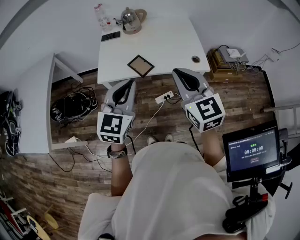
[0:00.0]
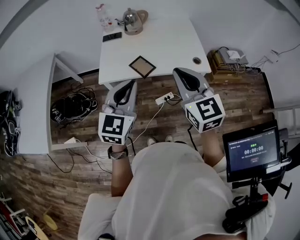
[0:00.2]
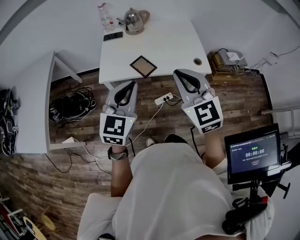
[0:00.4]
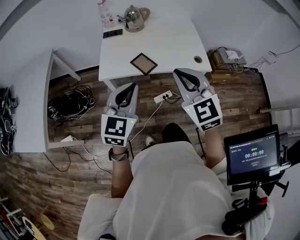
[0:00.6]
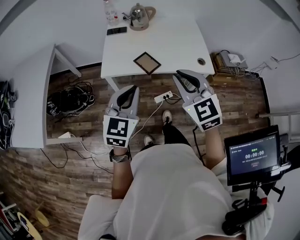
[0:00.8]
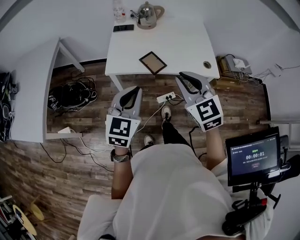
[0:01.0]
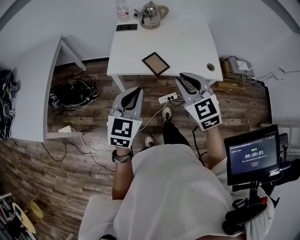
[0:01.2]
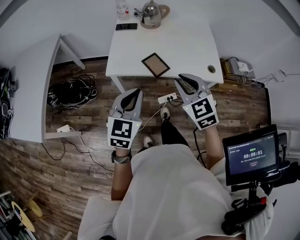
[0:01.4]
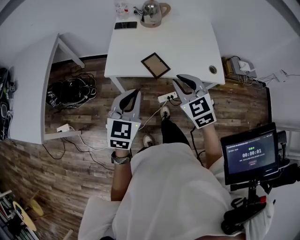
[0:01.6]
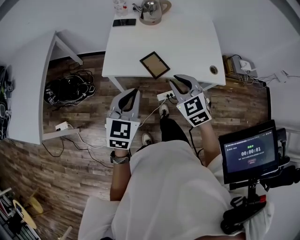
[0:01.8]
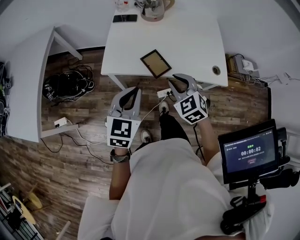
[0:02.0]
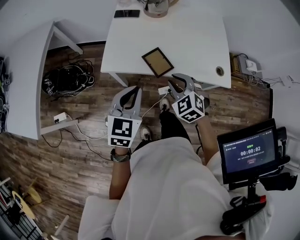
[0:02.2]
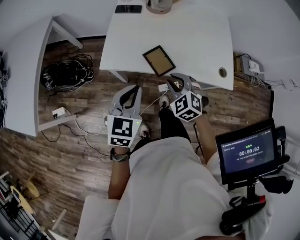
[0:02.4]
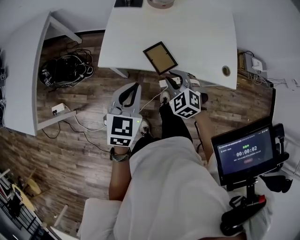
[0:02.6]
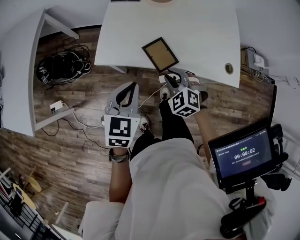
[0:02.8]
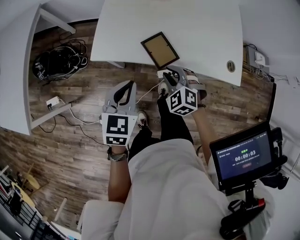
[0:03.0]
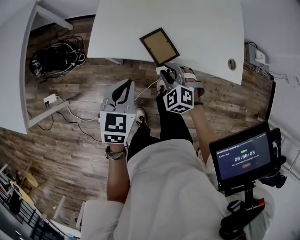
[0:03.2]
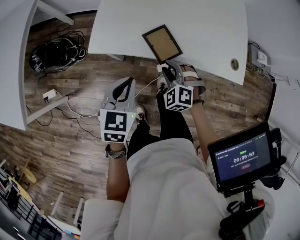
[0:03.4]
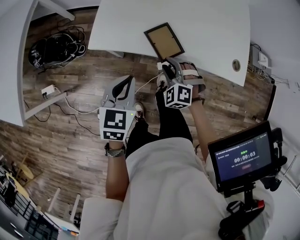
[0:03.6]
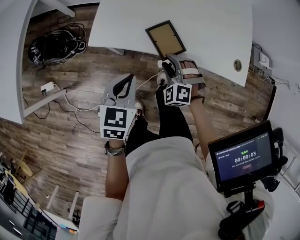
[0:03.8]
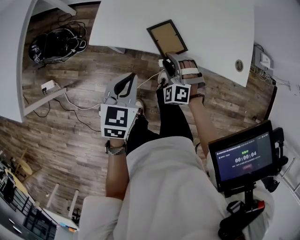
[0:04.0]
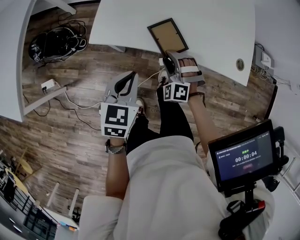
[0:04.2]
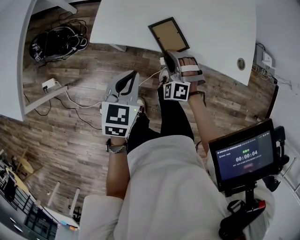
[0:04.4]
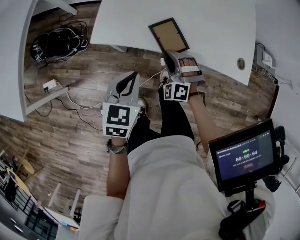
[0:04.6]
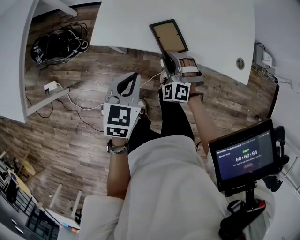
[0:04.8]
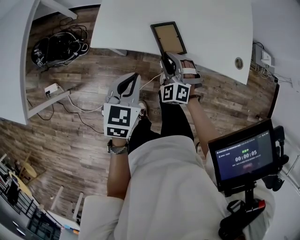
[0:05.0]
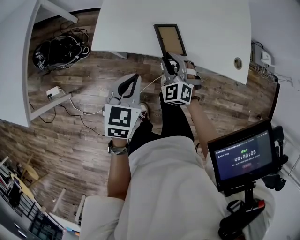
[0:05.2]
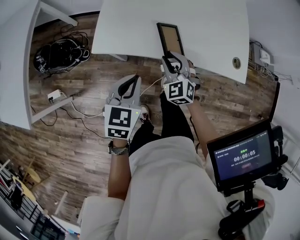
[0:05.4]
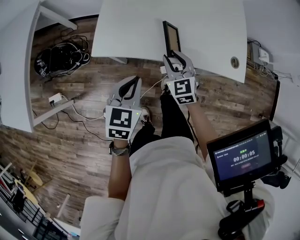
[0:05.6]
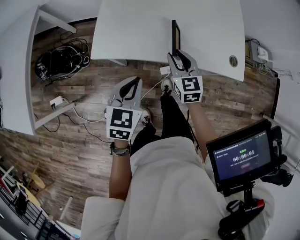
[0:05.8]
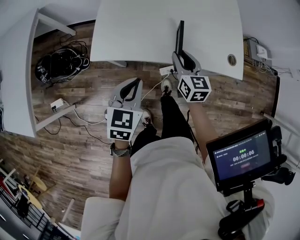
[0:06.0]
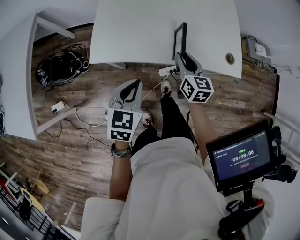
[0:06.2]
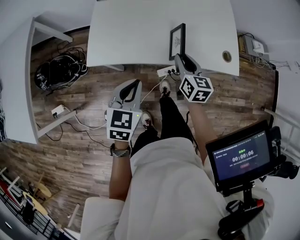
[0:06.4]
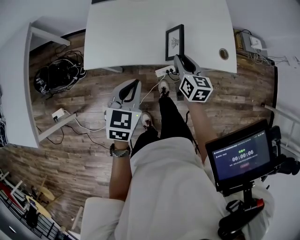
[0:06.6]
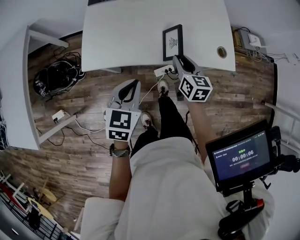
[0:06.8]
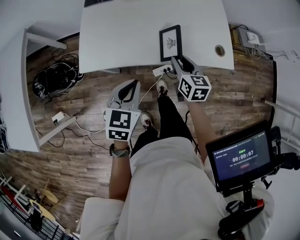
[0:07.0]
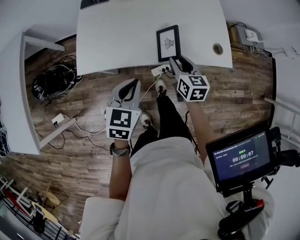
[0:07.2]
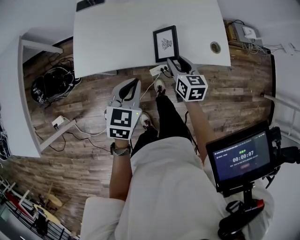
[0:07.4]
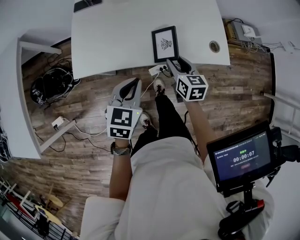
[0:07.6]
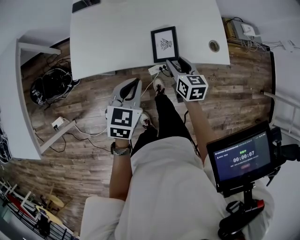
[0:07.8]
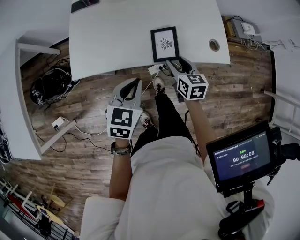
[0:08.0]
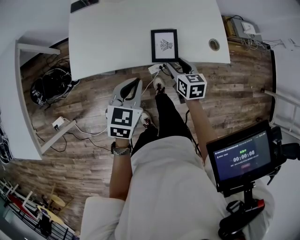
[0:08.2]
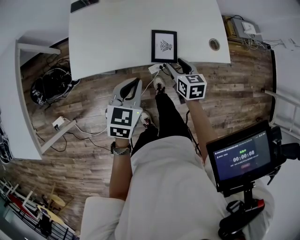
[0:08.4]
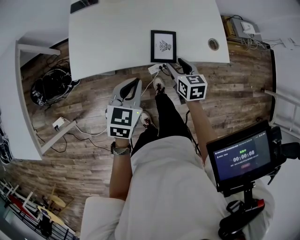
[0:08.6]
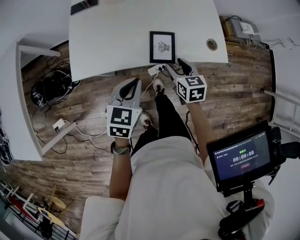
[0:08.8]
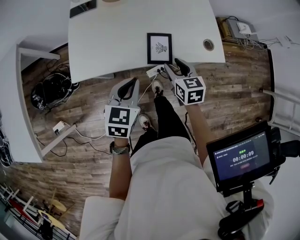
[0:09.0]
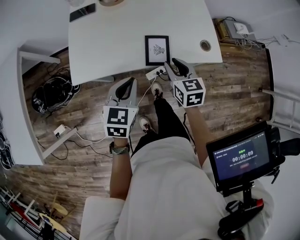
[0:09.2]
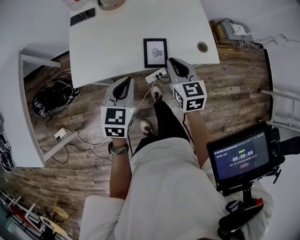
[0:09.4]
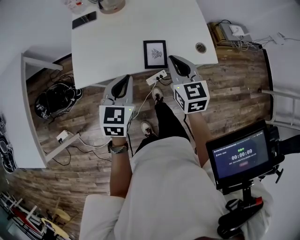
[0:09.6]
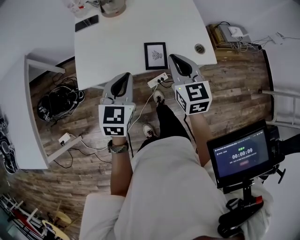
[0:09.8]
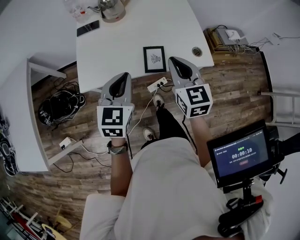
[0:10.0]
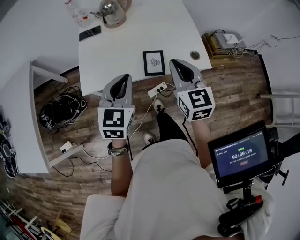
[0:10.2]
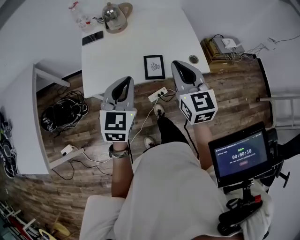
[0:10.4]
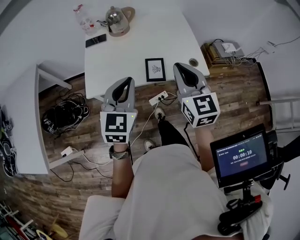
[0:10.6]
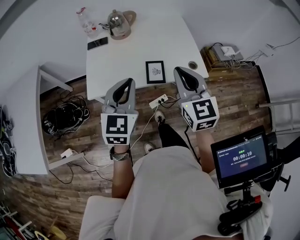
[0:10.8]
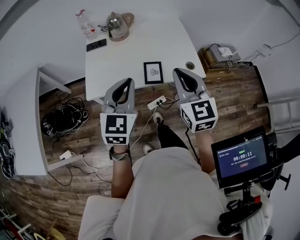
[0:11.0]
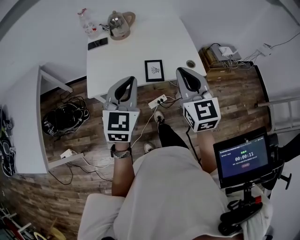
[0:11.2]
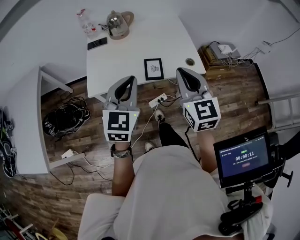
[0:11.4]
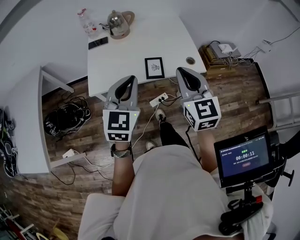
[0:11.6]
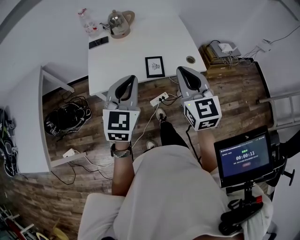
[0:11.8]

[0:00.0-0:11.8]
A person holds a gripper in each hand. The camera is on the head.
0.0 to 1.4 s: The right gripper goes some 15 cm downward, to the left and forward, and rotates approximately 20 degrees. The left gripper moves downward and to the left, some 10 cm.
1.4 to 3.0 s: The right gripper moves downward, about 25 cm, and rotates about 30 degrees. The left gripper goes roughly 20 cm downward and forward.
3.0 to 4.4 s: The right gripper changes its angle by approximately 30 degrees.
4.4 to 6.0 s: The right gripper heads upward, forward and to the right, covering roughly 10 cm, and rotates around the line of its fingers by some 80 degrees, clockwise from behind.
6.0 to 7.4 s: Both grippers travel together to the right, about 10 cm.
7.4 to 8.8 s: The grippers move only a little.
8.8 to 10.4 s: The left gripper heads upward, covering roughly 20 cm, and changes its angle by roughly 20 degrees. The right gripper goes approximately 30 cm upward, swivels about 30 degrees, and closes.
10.4 to 11.8 s: The grippers make only small movements.

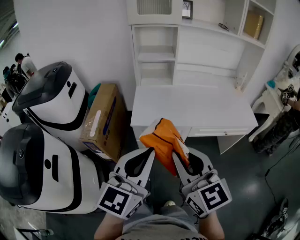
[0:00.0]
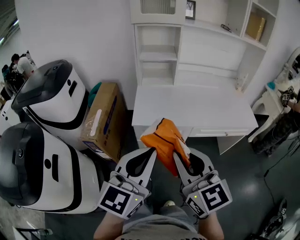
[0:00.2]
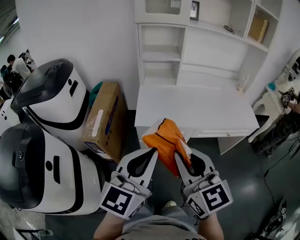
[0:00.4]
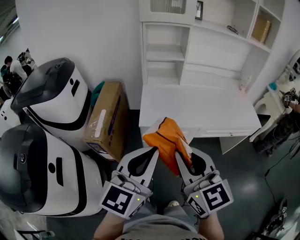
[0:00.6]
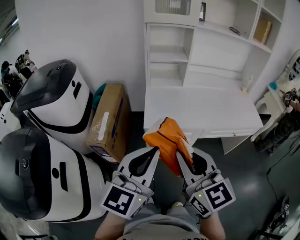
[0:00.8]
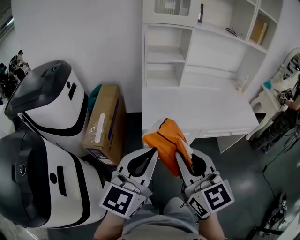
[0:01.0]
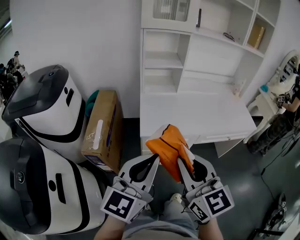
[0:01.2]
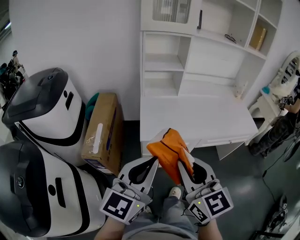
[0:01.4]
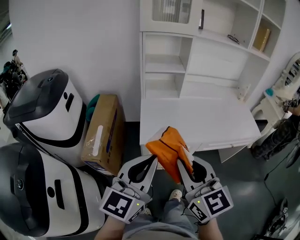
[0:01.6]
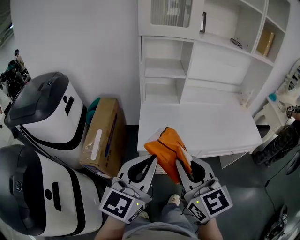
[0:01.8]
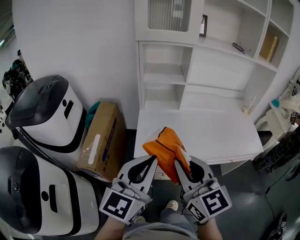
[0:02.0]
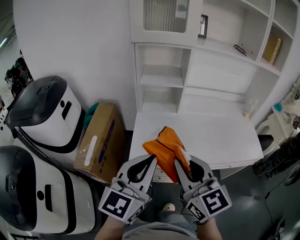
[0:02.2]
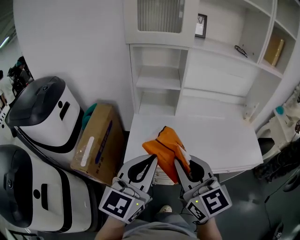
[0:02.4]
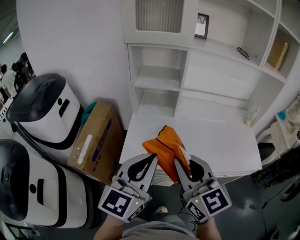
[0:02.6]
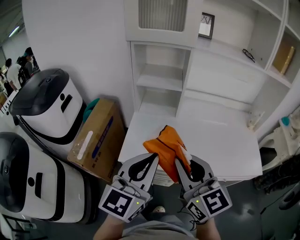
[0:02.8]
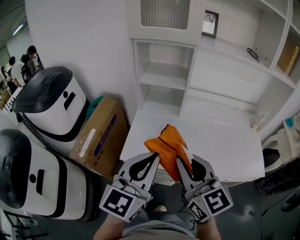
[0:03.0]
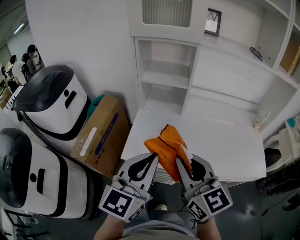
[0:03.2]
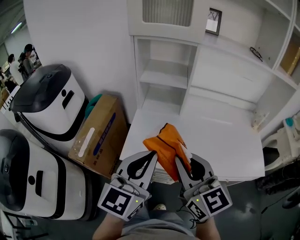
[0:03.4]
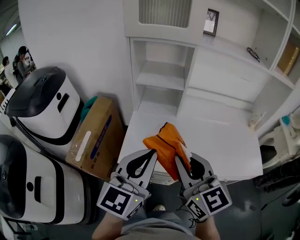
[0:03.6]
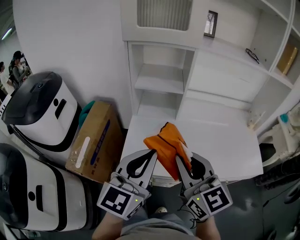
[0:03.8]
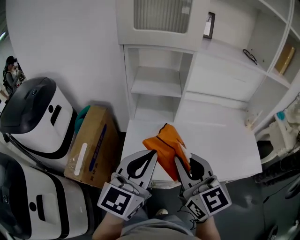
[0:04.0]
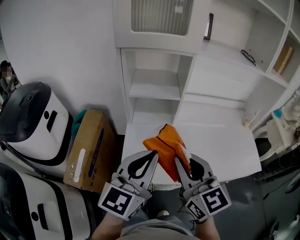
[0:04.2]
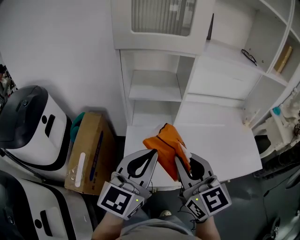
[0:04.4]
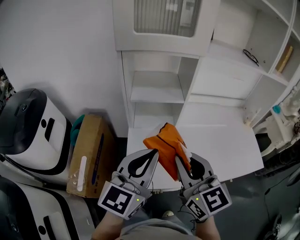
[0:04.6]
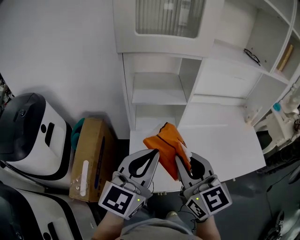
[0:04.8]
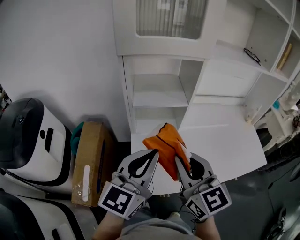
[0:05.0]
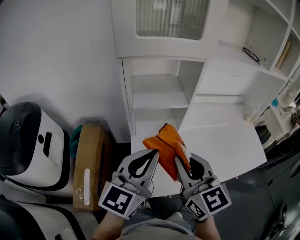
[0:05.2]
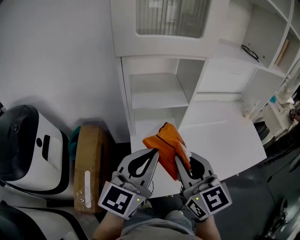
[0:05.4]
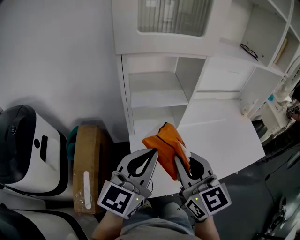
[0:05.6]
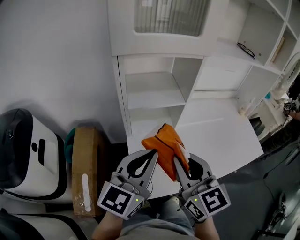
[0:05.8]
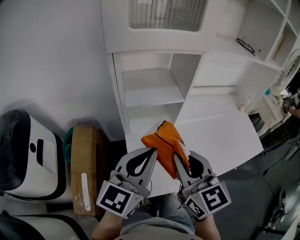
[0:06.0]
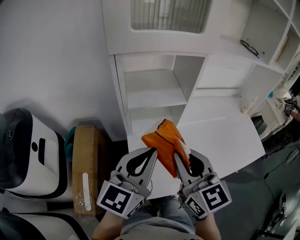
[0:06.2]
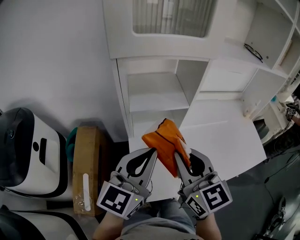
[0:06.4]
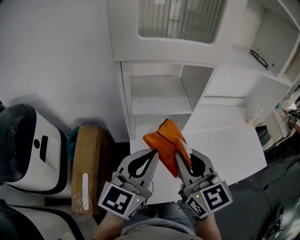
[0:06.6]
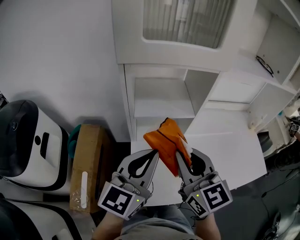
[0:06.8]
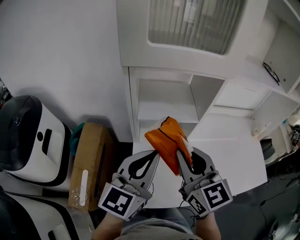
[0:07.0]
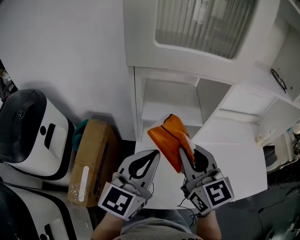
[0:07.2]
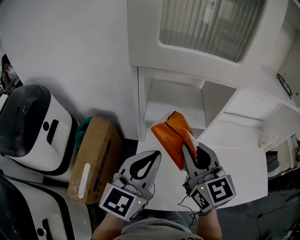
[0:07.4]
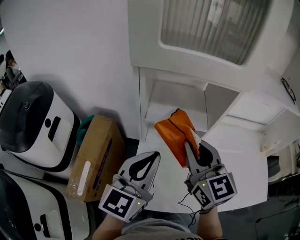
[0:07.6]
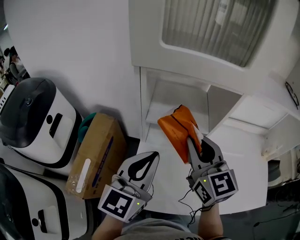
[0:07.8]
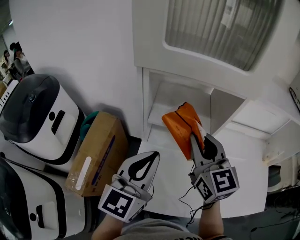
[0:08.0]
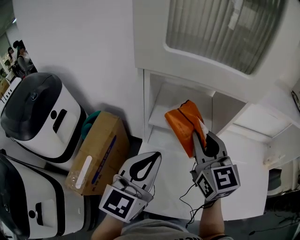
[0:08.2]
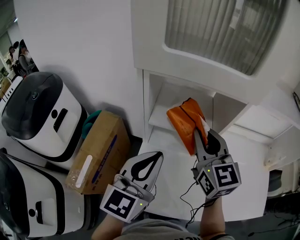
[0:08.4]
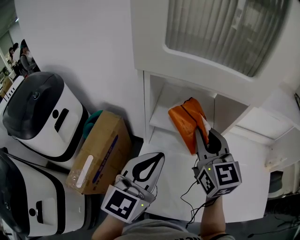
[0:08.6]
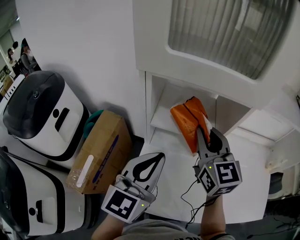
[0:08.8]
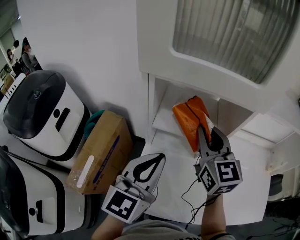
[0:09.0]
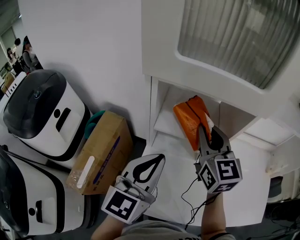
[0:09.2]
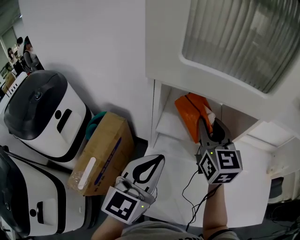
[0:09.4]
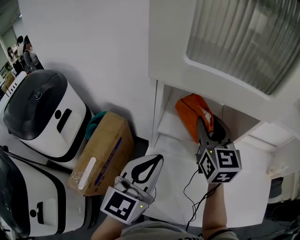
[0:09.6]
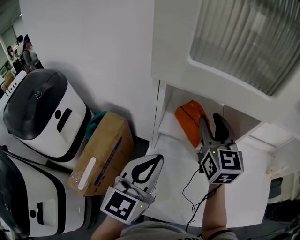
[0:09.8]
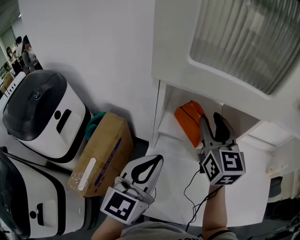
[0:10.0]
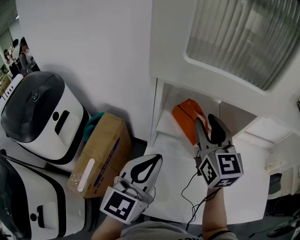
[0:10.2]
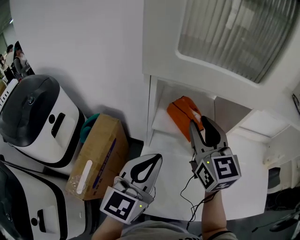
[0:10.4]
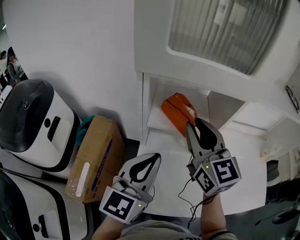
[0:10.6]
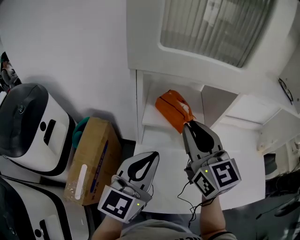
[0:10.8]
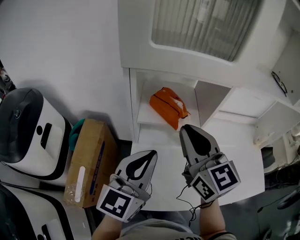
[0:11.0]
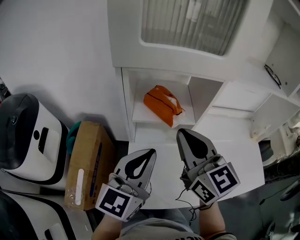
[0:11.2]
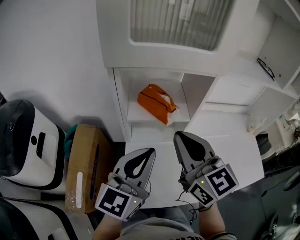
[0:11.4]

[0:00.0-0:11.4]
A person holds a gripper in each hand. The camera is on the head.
0.0 to 1.4 s: The right gripper goes about 10 cm to the left. The left gripper shifts approximately 10 cm to the left and forward.
1.4 to 2.8 s: The grippers both shift forward and to the right by roughly 25 cm.
2.8 to 4.2 s: Both grippers move forward, approximately 10 cm.
4.2 to 5.6 s: The grippers both shift to the left and forward by roughly 10 cm.
5.6 to 7.2 s: The left gripper heads forward, covering about 5 cm, while the right gripper shifts approximately 10 cm forward.
7.2 to 8.6 s: The right gripper heads forward, covering roughly 10 cm.
8.6 to 10.0 s: The right gripper travels forward by about 5 cm, and opens its fingers.
10.0 to 11.4 s: The left gripper ends up about 5 cm from where it was, while the right gripper moves backward, about 15 cm, and closes.

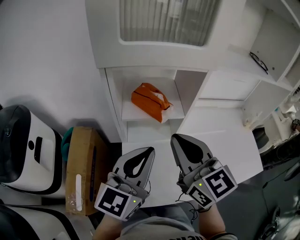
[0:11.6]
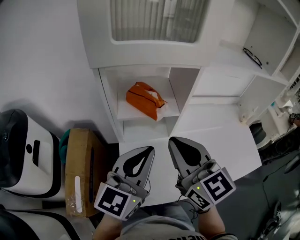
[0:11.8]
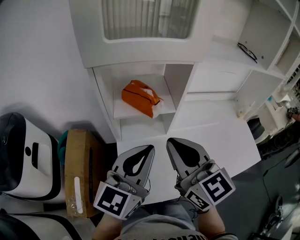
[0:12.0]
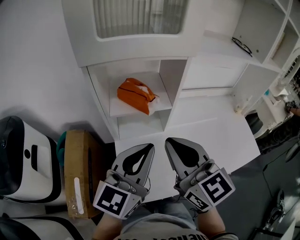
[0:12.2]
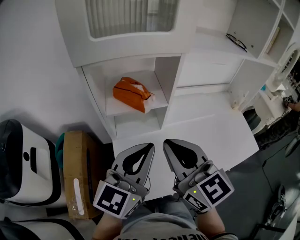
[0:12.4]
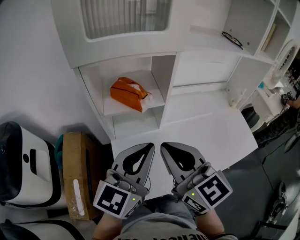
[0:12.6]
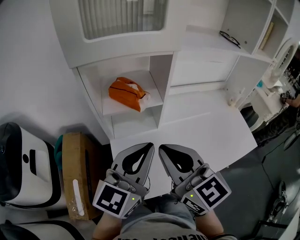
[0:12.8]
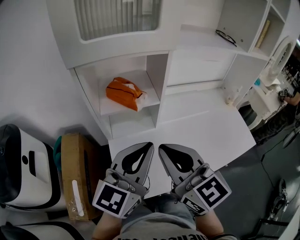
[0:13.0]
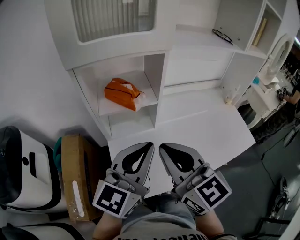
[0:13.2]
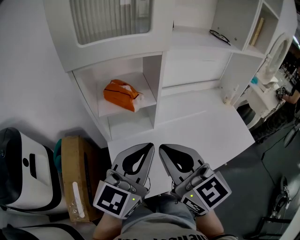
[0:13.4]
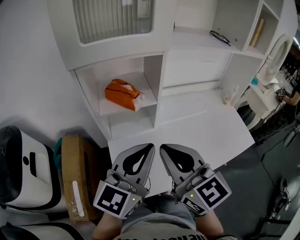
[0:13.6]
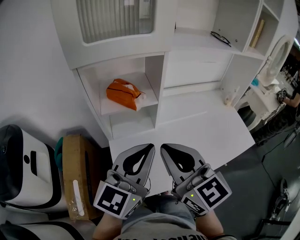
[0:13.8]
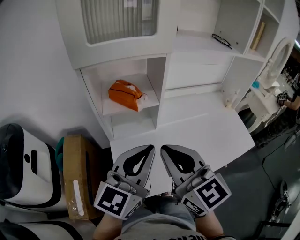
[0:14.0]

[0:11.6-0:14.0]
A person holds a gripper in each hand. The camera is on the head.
11.6 to 12.8 s: The right gripper moves backward, some 5 cm. Meanwhile the left gripper moves to the right, some 5 cm.
12.8 to 14.0 s: The grippers make only small movements.
